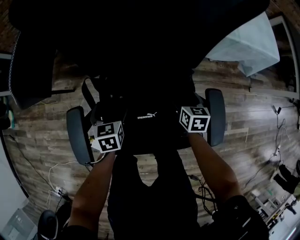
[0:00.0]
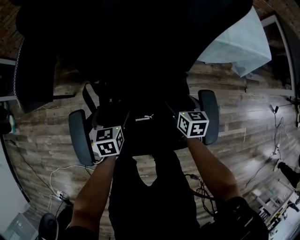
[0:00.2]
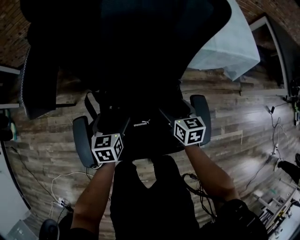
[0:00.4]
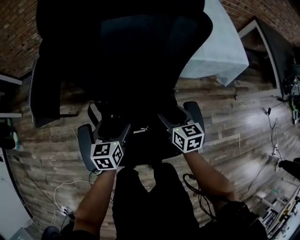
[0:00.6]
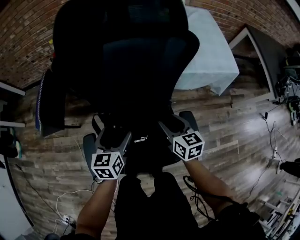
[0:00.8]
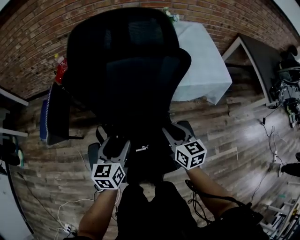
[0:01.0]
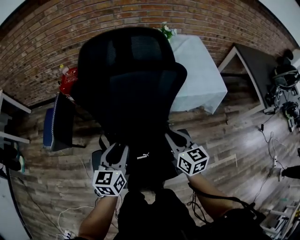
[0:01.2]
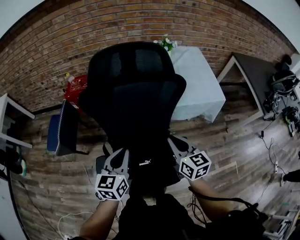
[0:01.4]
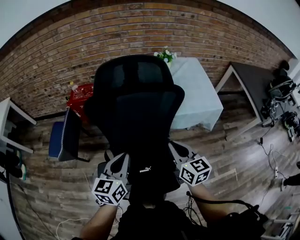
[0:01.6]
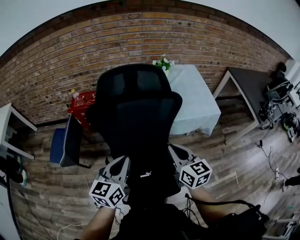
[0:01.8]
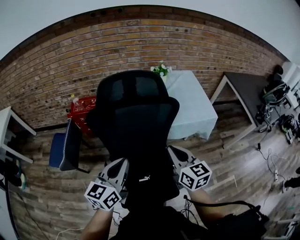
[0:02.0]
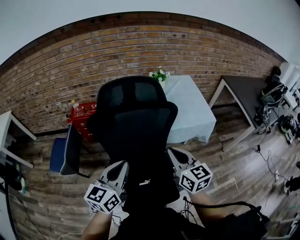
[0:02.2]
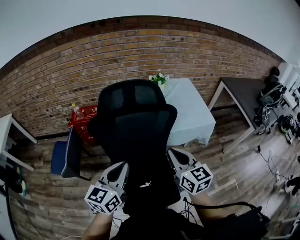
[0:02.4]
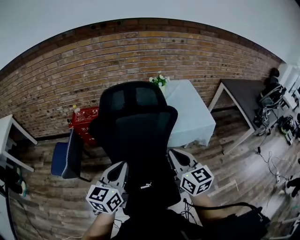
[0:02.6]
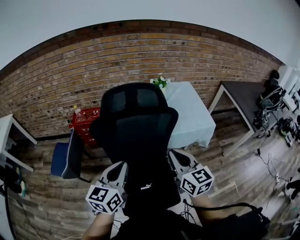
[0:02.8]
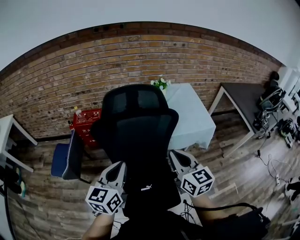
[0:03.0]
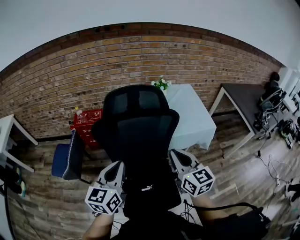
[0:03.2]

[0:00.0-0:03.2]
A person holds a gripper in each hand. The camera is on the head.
0:00.0 to 0:01.6: The grippers both shift upward by roughly 40 cm. The right gripper tilts its fingers approximately 30 degrees upward, and closes. Meanwhile the left gripper tilts its fingers about 30 degrees upward, and closes its fingers.
0:01.6 to 0:03.2: Both grippers move upward, approximately 10 cm.

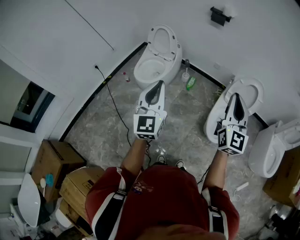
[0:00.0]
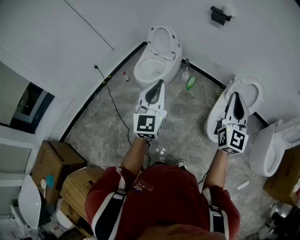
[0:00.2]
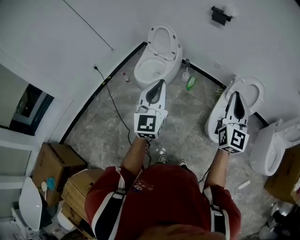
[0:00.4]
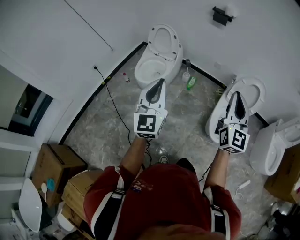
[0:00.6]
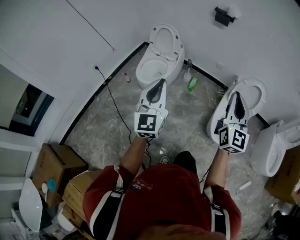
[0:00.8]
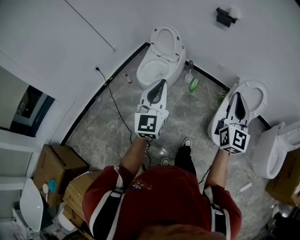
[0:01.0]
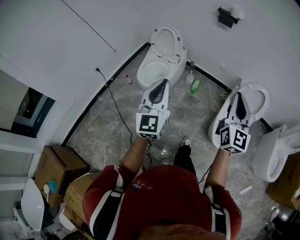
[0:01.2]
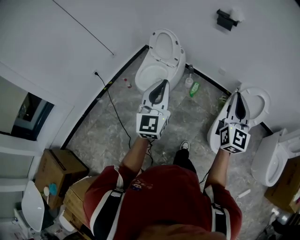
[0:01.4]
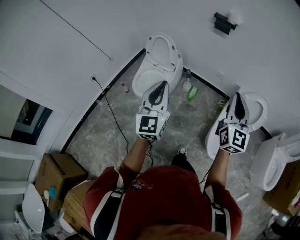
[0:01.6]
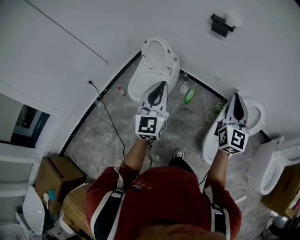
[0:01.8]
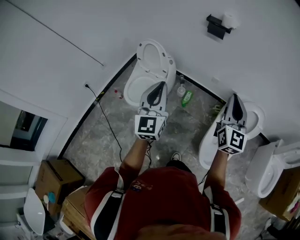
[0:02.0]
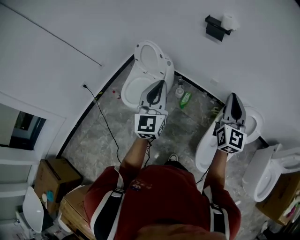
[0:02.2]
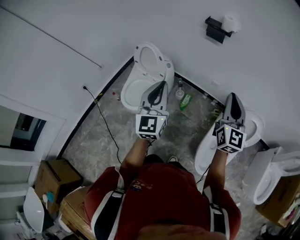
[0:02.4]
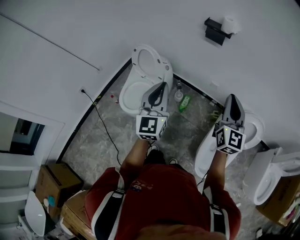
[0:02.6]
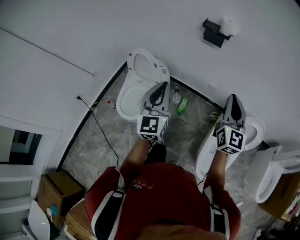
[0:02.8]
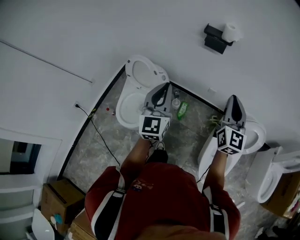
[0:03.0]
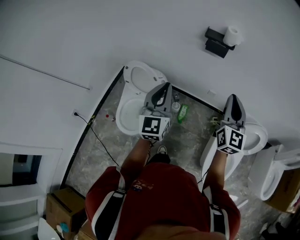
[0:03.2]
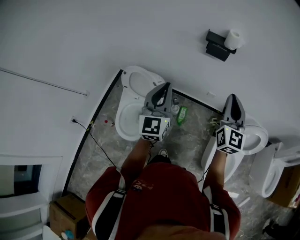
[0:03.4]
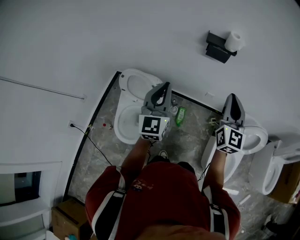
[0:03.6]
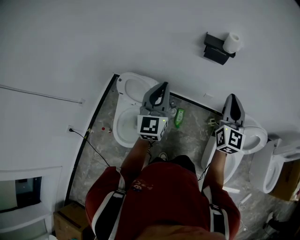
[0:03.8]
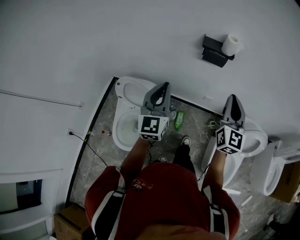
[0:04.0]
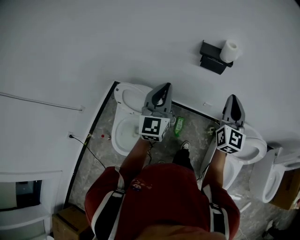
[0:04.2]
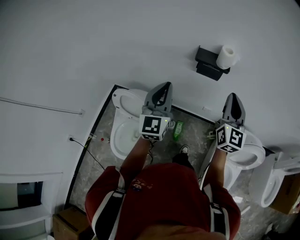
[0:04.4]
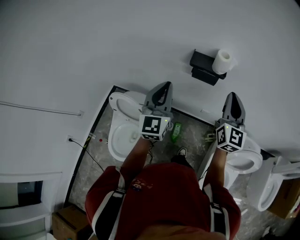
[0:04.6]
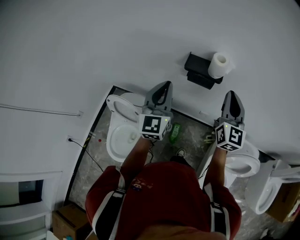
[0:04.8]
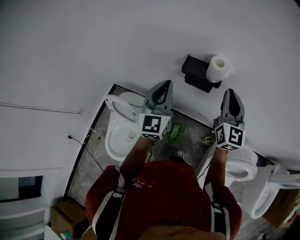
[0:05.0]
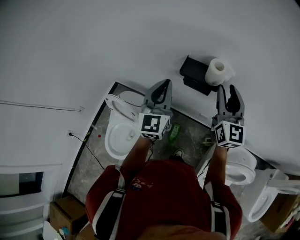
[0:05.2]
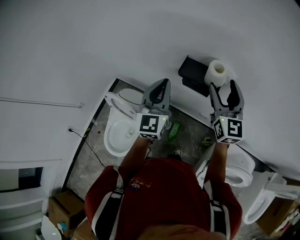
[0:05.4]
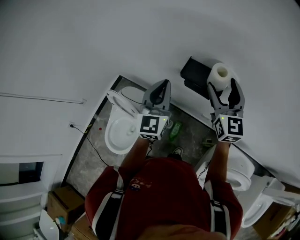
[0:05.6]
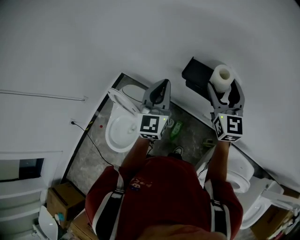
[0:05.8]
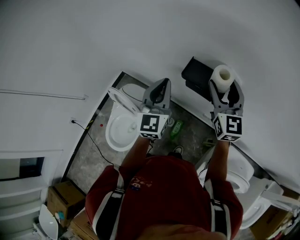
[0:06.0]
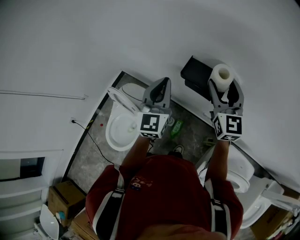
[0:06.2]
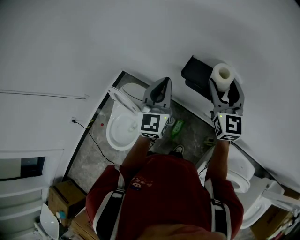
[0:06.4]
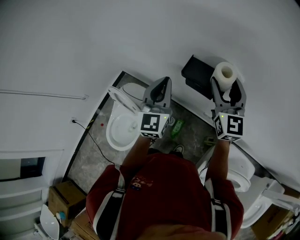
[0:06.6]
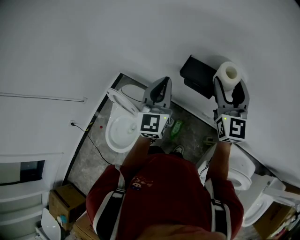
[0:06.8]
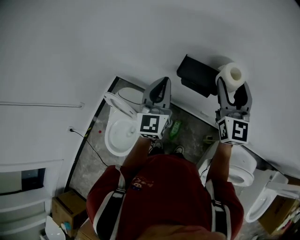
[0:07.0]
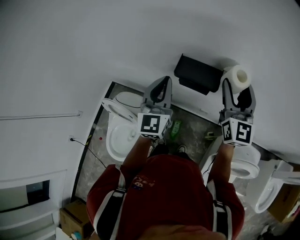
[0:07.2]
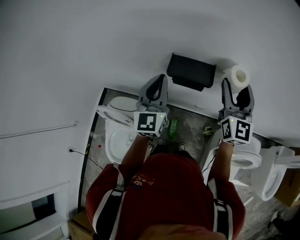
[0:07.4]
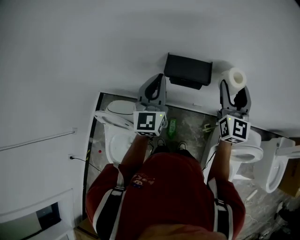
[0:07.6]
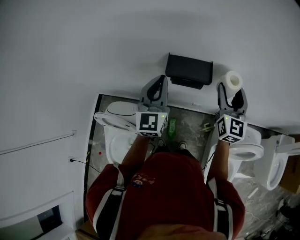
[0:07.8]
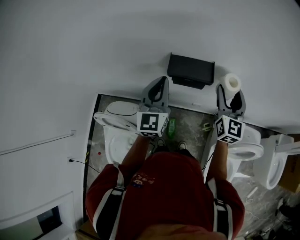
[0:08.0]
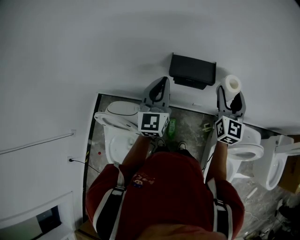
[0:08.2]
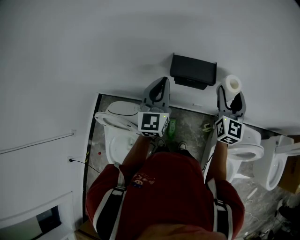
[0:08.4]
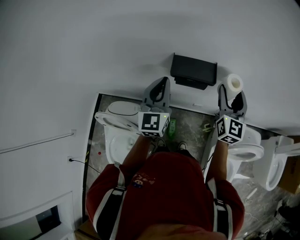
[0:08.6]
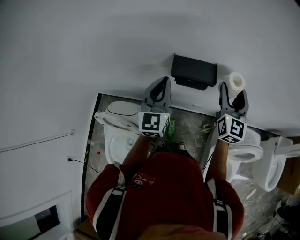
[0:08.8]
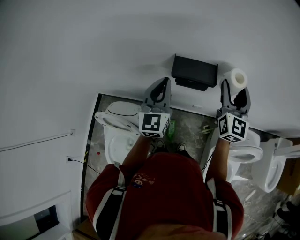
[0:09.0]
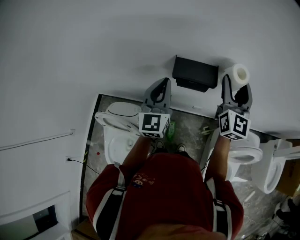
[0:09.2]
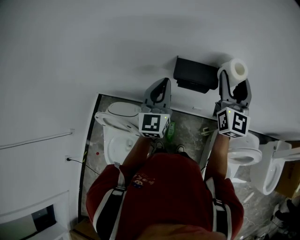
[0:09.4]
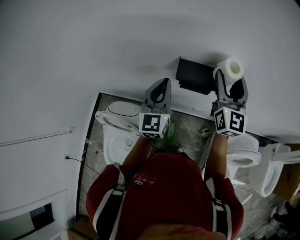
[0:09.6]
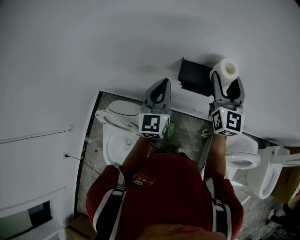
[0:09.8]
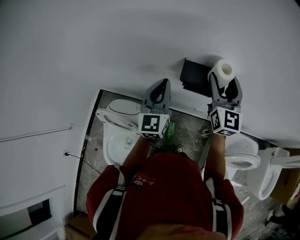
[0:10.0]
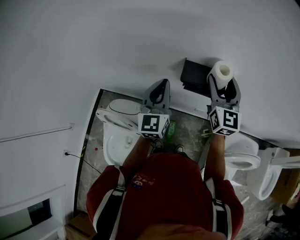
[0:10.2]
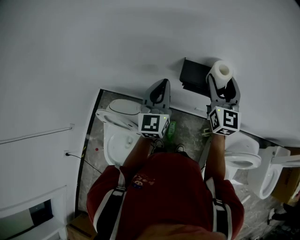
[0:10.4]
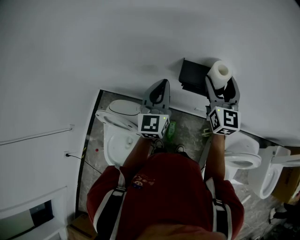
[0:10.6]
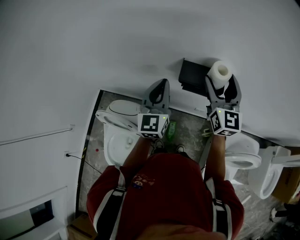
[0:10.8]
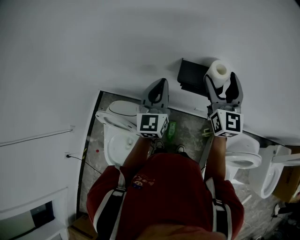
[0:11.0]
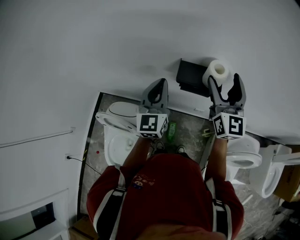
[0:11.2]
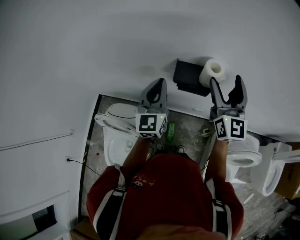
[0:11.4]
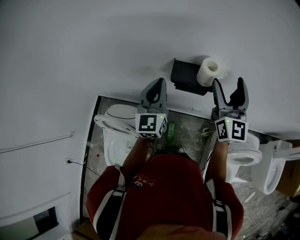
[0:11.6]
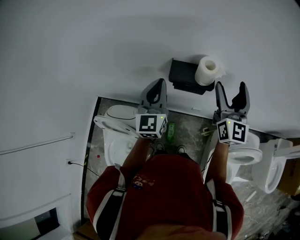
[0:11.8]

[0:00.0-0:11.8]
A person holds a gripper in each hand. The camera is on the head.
0:00.0 to 0:01.4: Both grippers travel together forward, about 15 cm.
0:01.4 to 0:03.0: The two grippers go about 40 cm forward.
0:03.0 to 0:04.4: Both grippers move forward, some 25 cm.
0:04.4 to 0:06.0: The left gripper moves forward and to the right, some 20 cm. The right gripper moves forward, approximately 25 cm, turns by approximately 30 degrees, and opens up.
0:06.0 to 0:07.4: The right gripper goes approximately 10 cm to the right and backward, and swivels some 30 degrees.
0:08.8 to 0:10.4: The right gripper moves to the left, roughly 10 cm.
0:10.4 to 0:11.8: The right gripper is displaced to the right by about 10 cm.

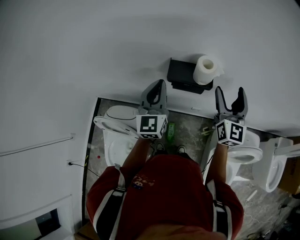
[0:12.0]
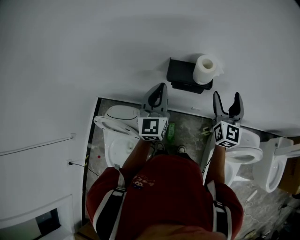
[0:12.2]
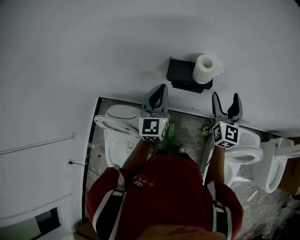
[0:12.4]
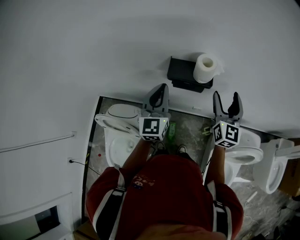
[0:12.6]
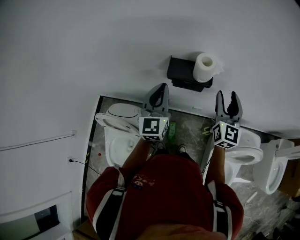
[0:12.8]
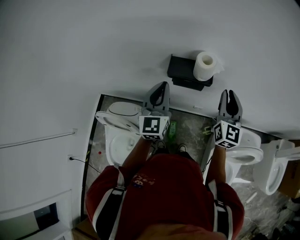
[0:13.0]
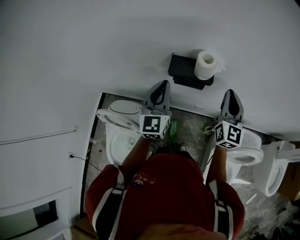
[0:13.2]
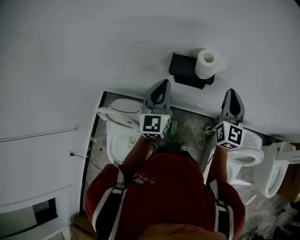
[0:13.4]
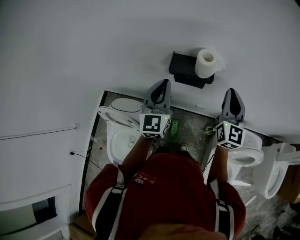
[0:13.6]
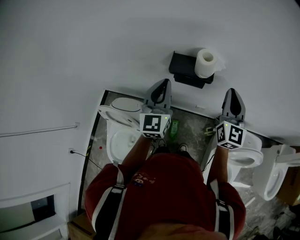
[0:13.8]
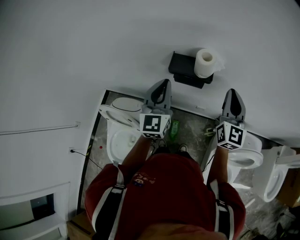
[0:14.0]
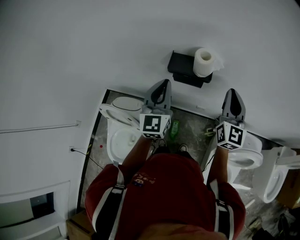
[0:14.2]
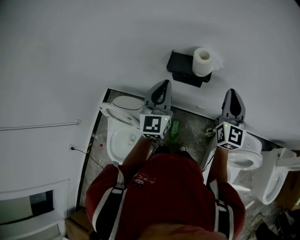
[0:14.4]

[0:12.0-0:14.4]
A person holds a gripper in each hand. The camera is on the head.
0:12.0 to 0:13.2: The right gripper closes its fingers.
0:13.2 to 0:14.4: The grippers stay close to where they were, moving slightly.

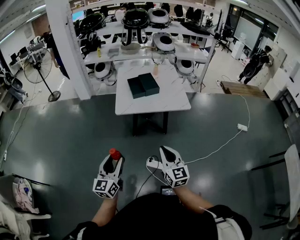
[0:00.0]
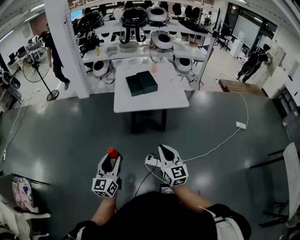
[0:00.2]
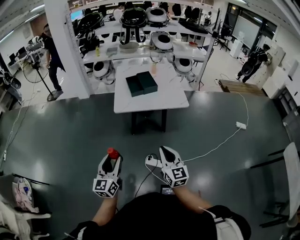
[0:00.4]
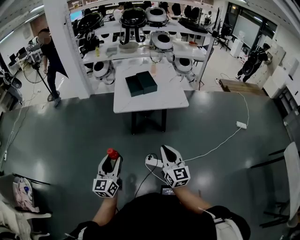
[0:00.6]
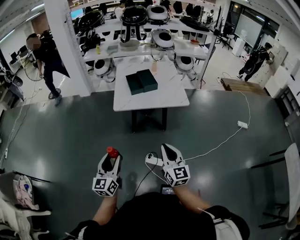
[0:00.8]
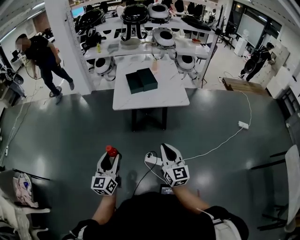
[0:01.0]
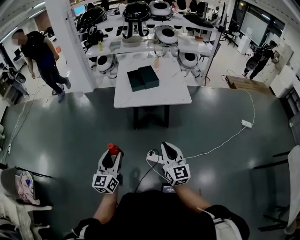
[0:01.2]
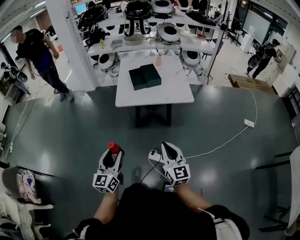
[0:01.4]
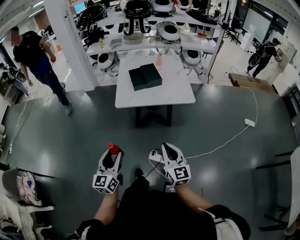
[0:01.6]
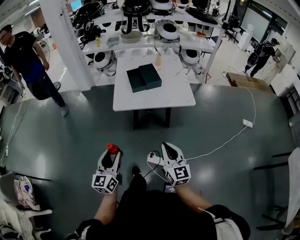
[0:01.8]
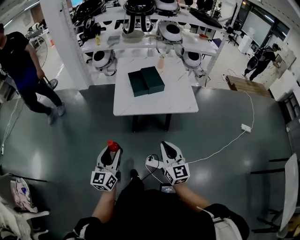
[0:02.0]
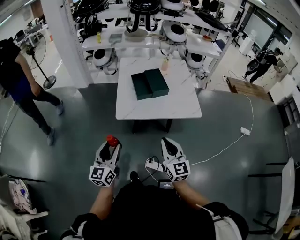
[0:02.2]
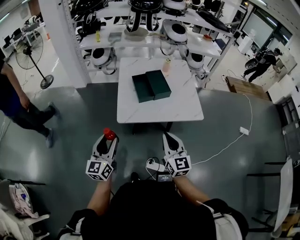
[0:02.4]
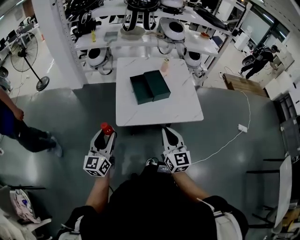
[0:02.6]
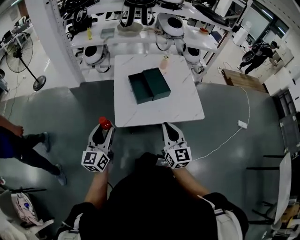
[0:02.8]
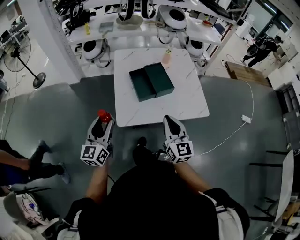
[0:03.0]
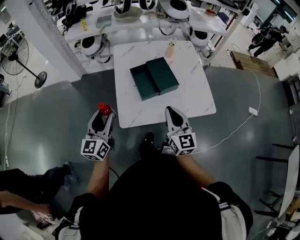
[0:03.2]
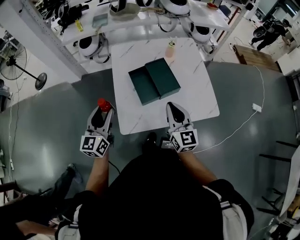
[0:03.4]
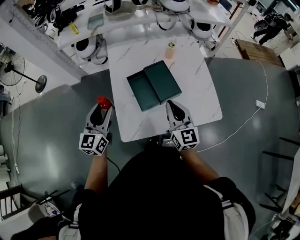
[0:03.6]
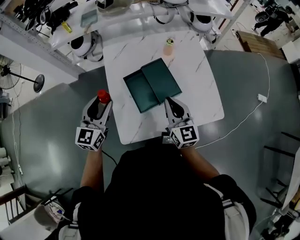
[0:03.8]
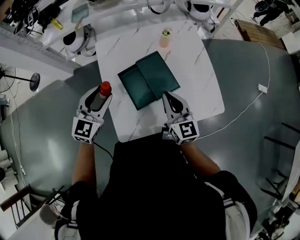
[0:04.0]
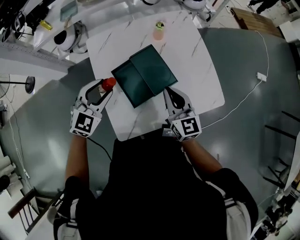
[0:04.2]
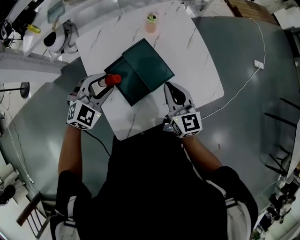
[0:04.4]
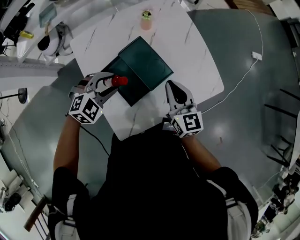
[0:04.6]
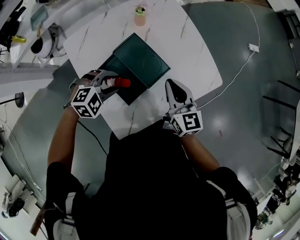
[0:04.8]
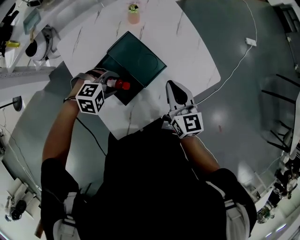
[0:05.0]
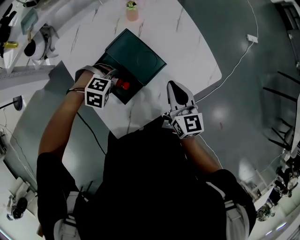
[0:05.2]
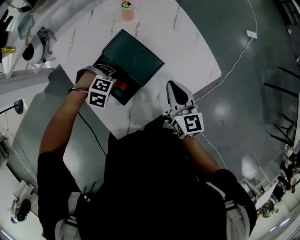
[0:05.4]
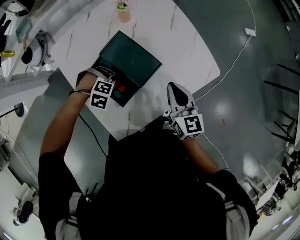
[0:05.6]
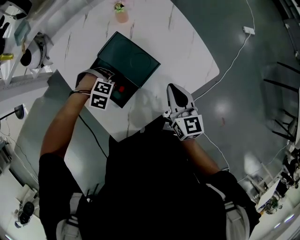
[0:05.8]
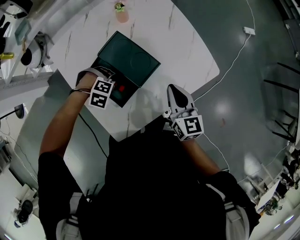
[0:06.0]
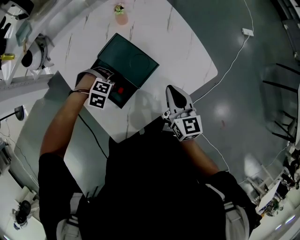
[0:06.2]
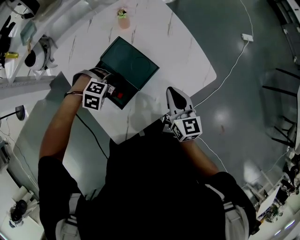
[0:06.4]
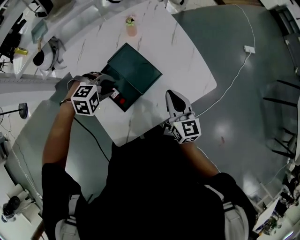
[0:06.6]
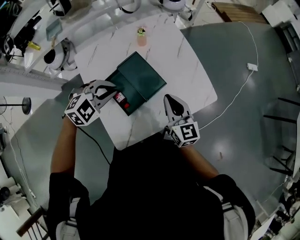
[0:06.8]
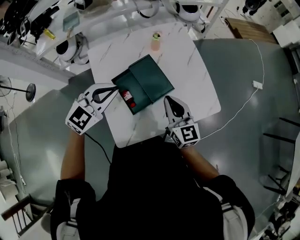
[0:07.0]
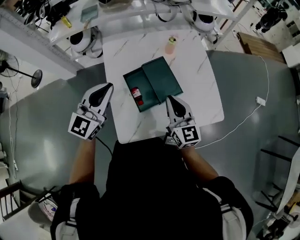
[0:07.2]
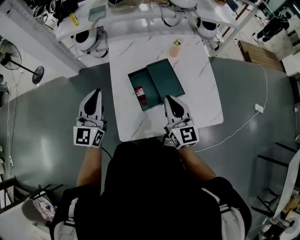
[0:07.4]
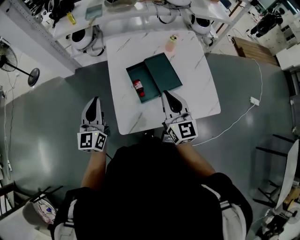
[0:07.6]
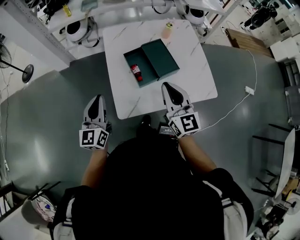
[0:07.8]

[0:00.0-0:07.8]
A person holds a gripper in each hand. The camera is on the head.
0:00.0 to 0:01.6: The grippers make only small movements.
0:01.6 to 0:03.2: The pair of grippers is taken forward, roughly 40 cm.
0:03.2 to 0:04.6: The left gripper moves some 30 cm, and tilts its fingers roughly 50 degrees downward. Meanwhile the right gripper ends up approximately 20 cm from where it was.
0:04.6 to 0:06.2: The left gripper heads downward, covering about 15 cm, and points its fingers about 30 degrees further downward. The right gripper changes place by some 10 cm.
0:06.2 to 0:07.8: The left gripper moves upward, some 25 cm, tips its fingers upward by some 80 degrees, and closes up. The right gripper heads upward, covering approximately 15 cm, and turns by some 40 degrees.
